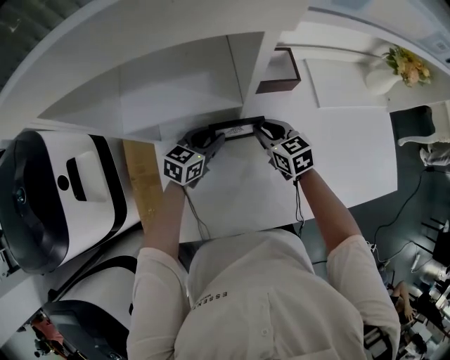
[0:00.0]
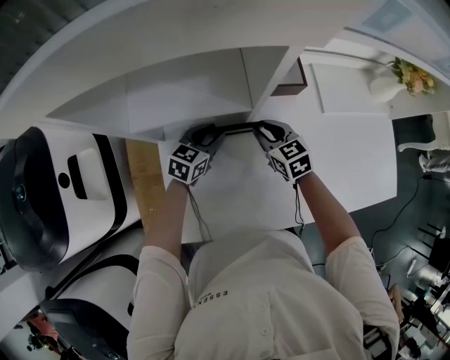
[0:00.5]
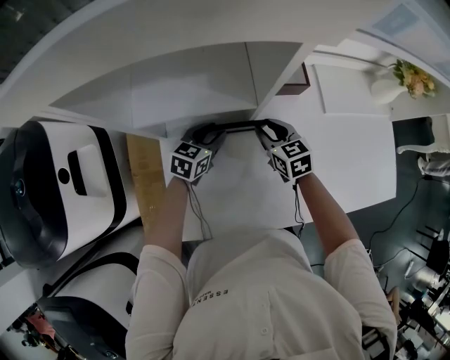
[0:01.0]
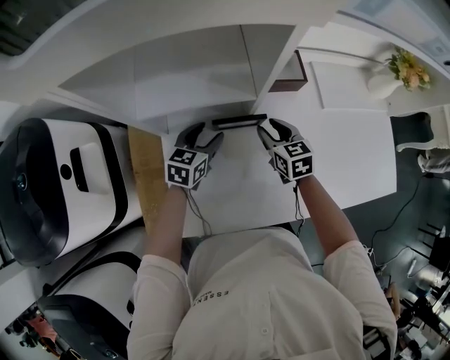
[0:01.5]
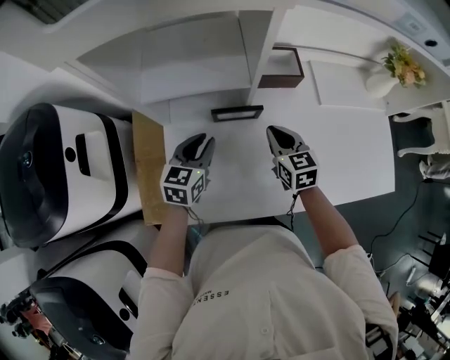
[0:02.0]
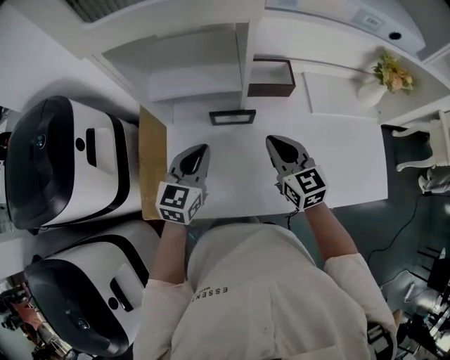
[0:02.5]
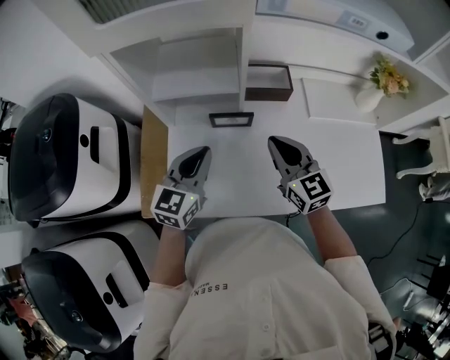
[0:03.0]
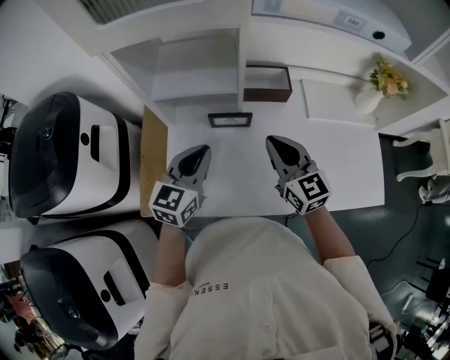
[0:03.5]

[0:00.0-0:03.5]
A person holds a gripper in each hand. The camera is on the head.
0:00.0 to 0:02.0: Both grippers travel together backward and upward, roughly 10 cm. The left gripper rotates about 20 degrees, and opens, then closes again. The right gripper opens, then closes once more.
0:02.0 to 0:03.5: Both grippers move upward and backward, about 15 cm. The left gripper closes, while the right gripper swivels about 20 degrees.

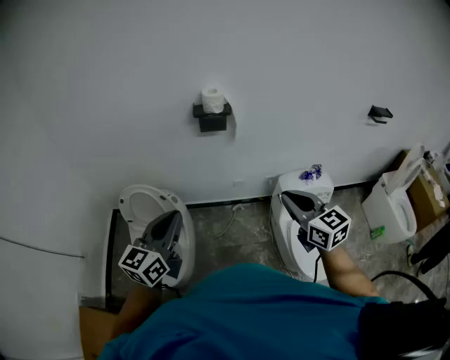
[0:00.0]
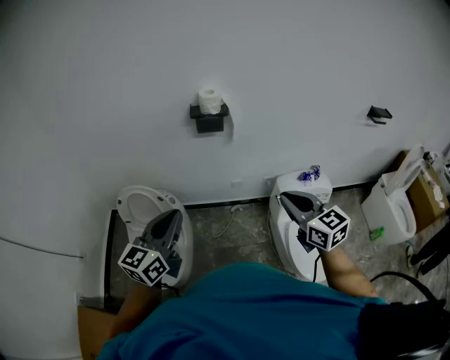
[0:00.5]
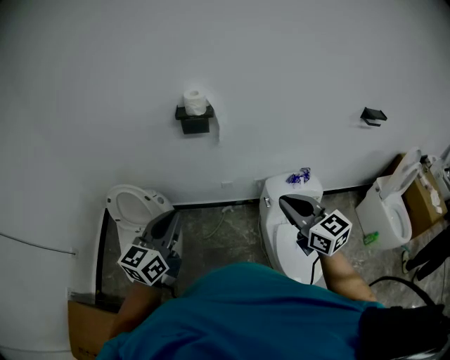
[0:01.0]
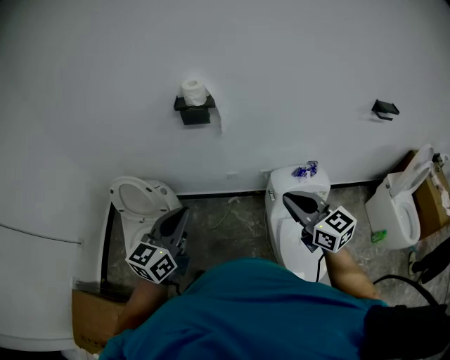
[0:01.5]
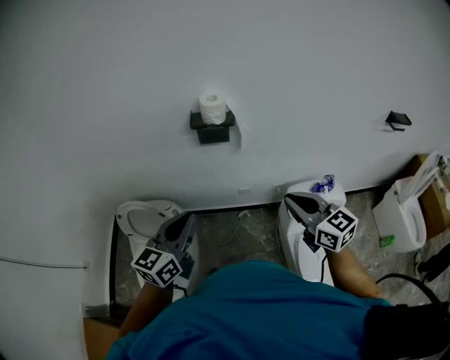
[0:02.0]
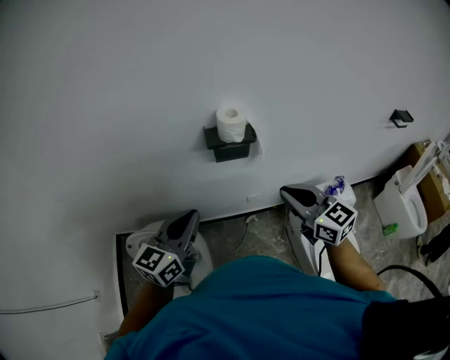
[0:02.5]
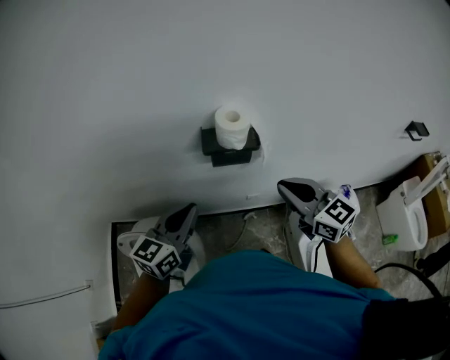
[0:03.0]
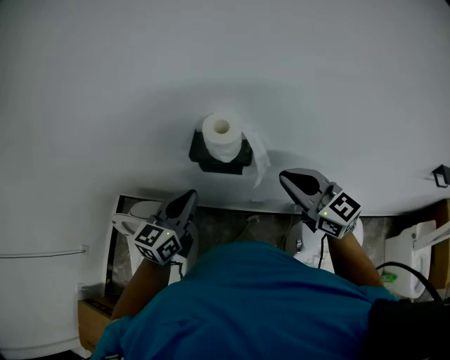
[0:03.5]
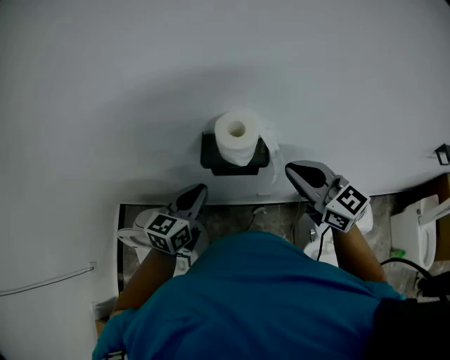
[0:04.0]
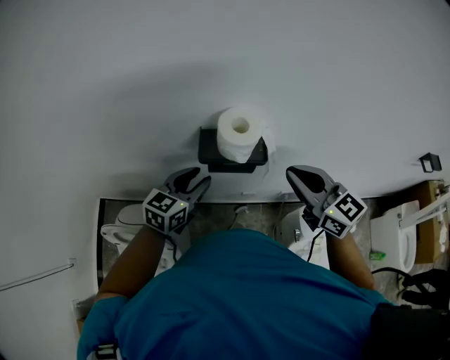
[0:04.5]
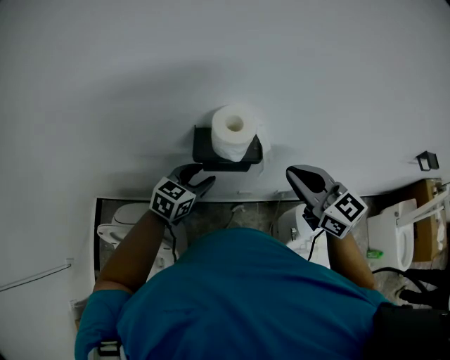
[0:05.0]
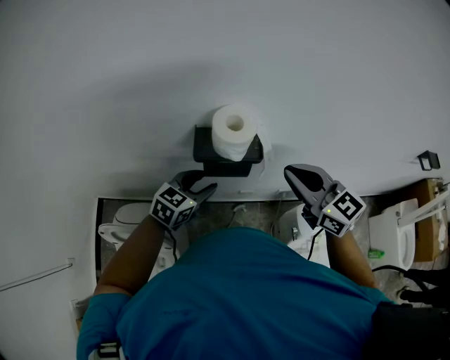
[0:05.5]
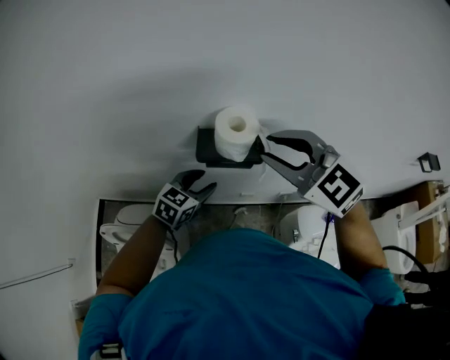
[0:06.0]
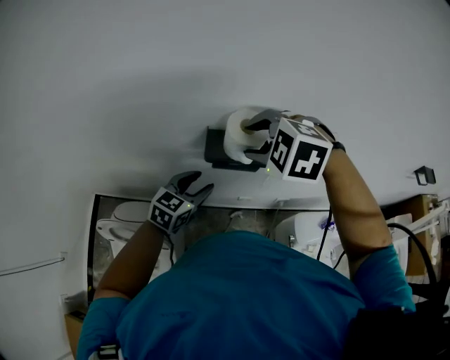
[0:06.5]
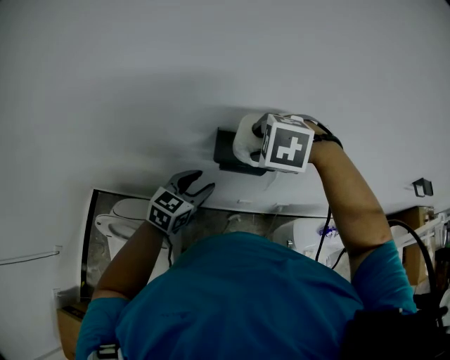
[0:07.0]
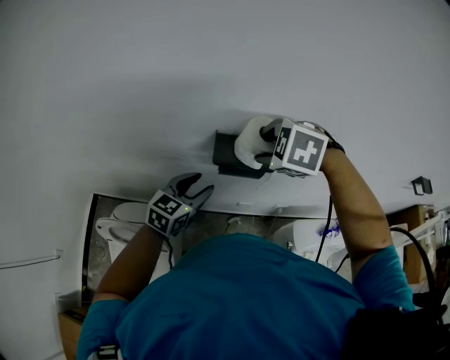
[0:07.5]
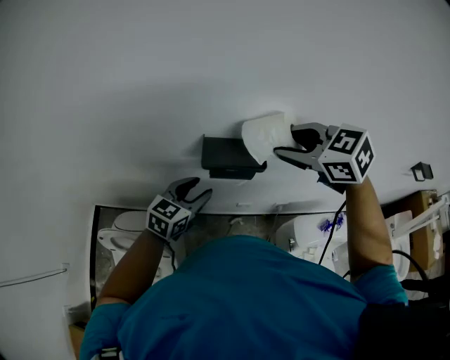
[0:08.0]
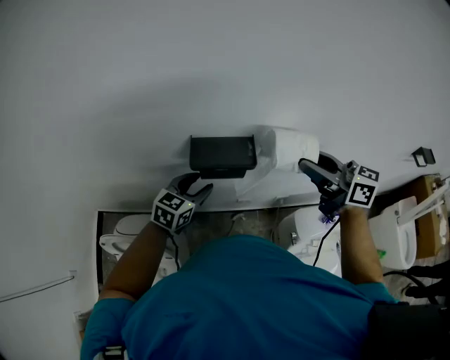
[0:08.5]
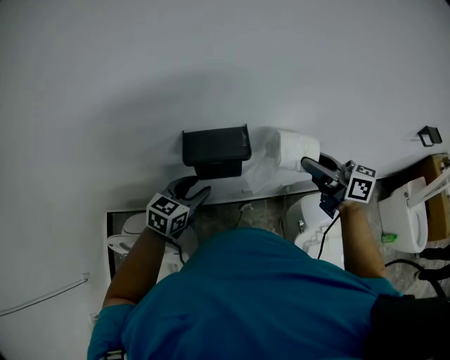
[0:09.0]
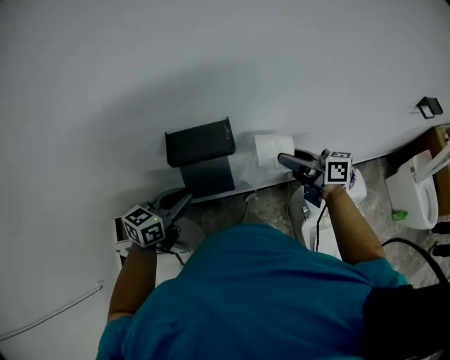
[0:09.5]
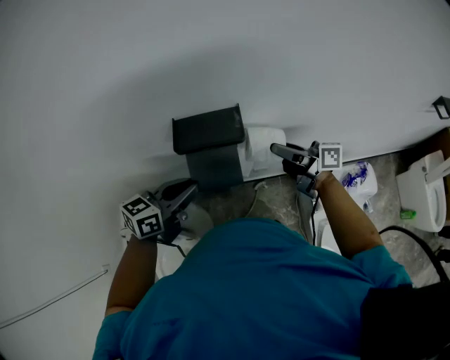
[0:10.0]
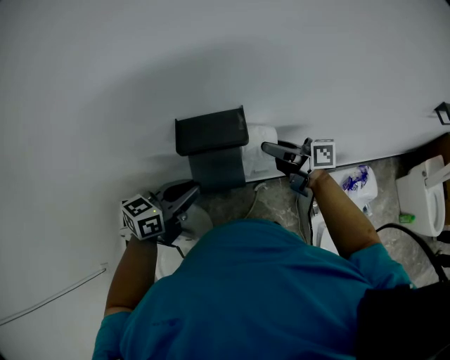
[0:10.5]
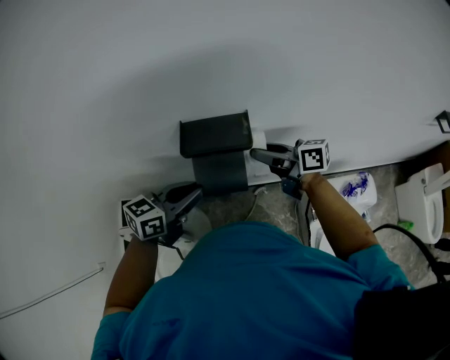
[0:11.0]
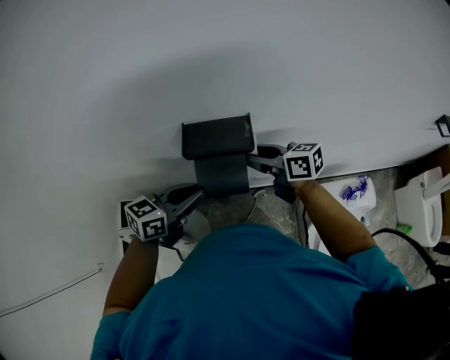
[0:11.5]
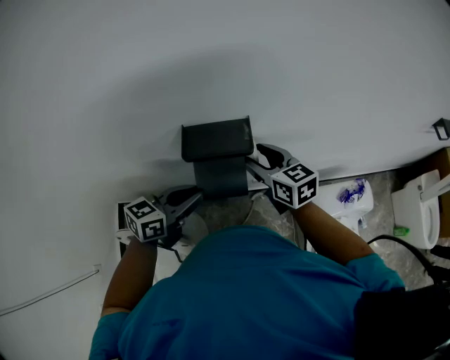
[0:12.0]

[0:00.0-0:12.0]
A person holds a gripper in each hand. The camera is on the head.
0:00.0 to 0:02.0: The right gripper is displaced forward by approximately 10 cm. Meanwhile the left gripper shifts about 15 cm forward and to the right.
0:02.0 to 0:04.0: The grippers both shift forward by about 30 cm.
0:04.0 to 0:06.0: The right gripper is displaced to the left and upward by roughly 10 cm, changes its angle by some 30 degrees, and opens its fingers, while the left gripper goes some 5 cm downward, swivels roughly 20 degrees, and opens up.
0:06.0 to 0:08.0: The right gripper moves about 5 cm to the left and comes back, and turns by roughly 20 degrees.
0:08.0 to 0:10.0: The right gripper moves downward and to the right, some 20 cm, and points its fingers some 50 degrees further upward. The left gripper moves approximately 5 cm, changes its angle by about 20 degrees, and closes up.
0:10.0 to 0:12.0: The right gripper travels to the left by about 10 cm, and rotates some 50 degrees.

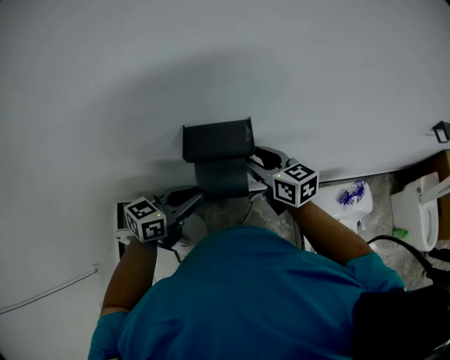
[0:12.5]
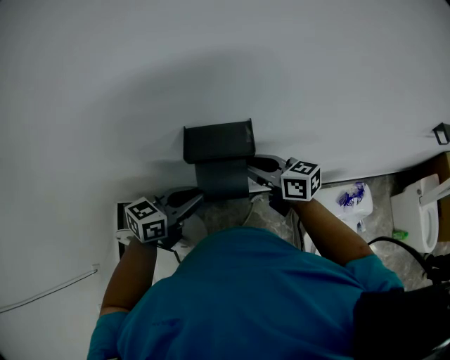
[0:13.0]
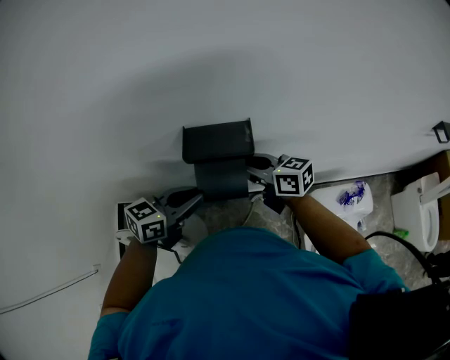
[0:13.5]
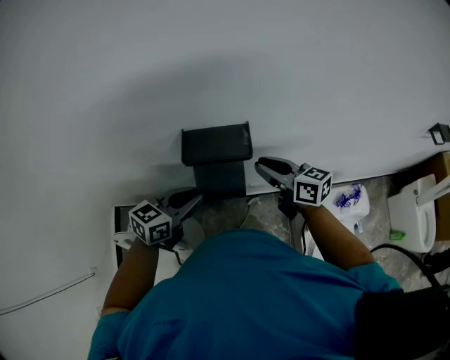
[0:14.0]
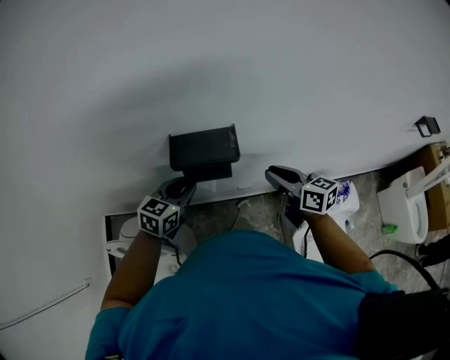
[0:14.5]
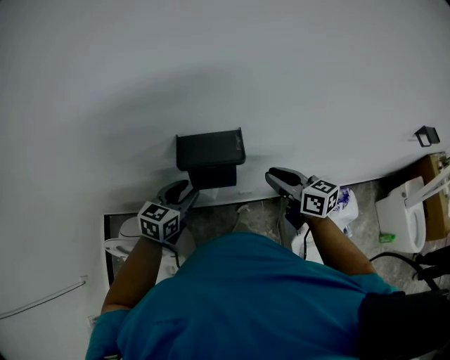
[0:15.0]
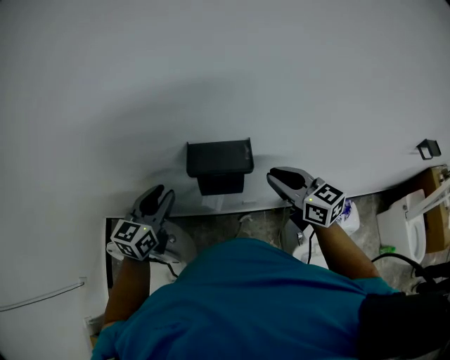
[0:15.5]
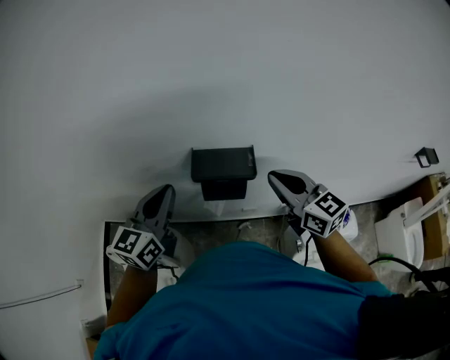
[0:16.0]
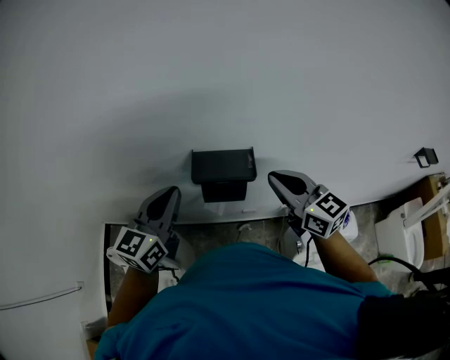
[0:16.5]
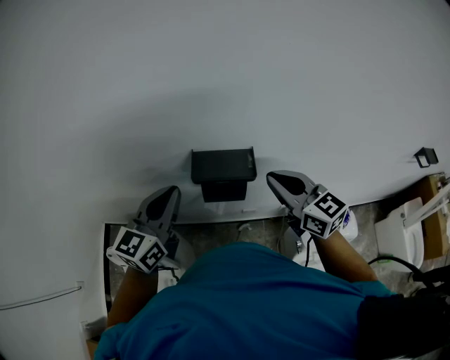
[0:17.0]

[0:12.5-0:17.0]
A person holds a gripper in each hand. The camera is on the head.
0:12.5 to 0:14.5: The left gripper heads forward and downward, covering about 10 cm, and swivels some 20 degrees, while the right gripper travels to the right by some 10 cm, and closes.
0:14.5 to 0:17.0: The left gripper moves upward, some 20 cm, swivels some 30 degrees, and opens and closes again; the right gripper heads upward and to the left, covering about 15 cm, and turns by about 30 degrees.

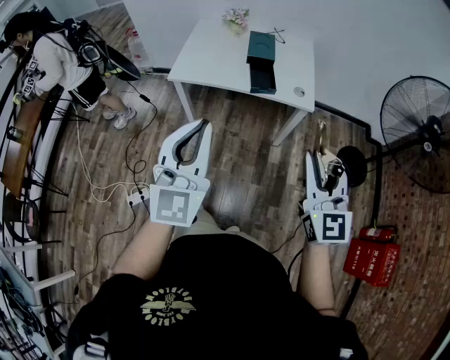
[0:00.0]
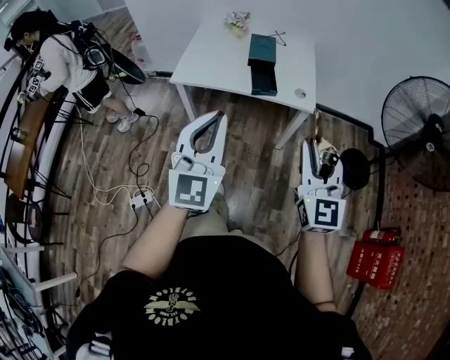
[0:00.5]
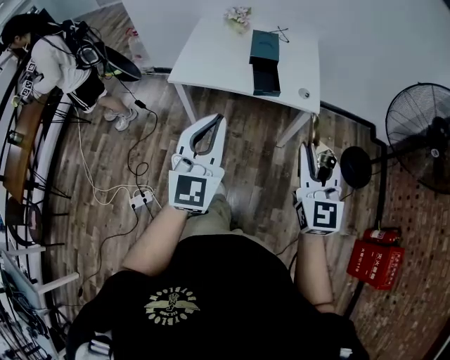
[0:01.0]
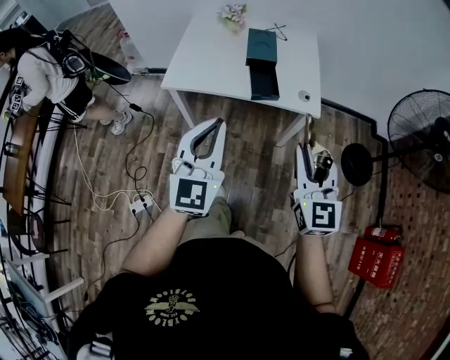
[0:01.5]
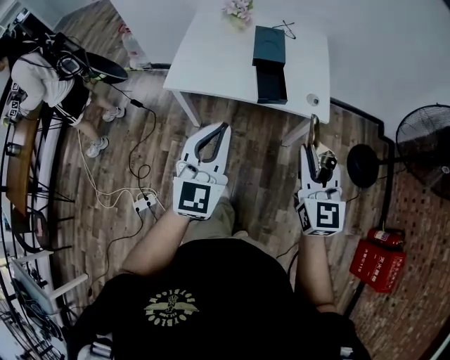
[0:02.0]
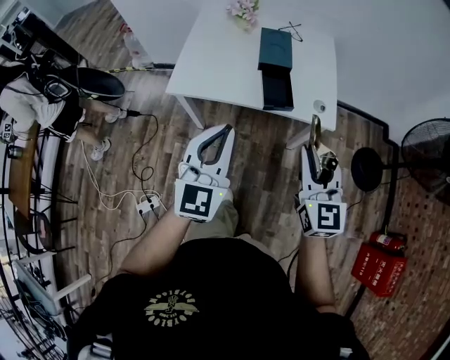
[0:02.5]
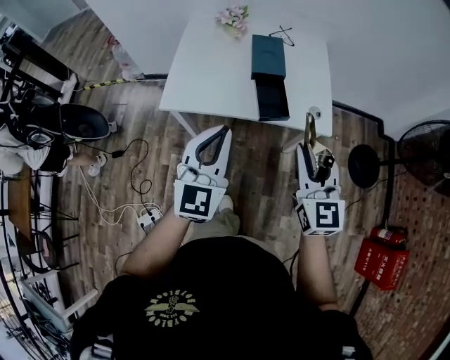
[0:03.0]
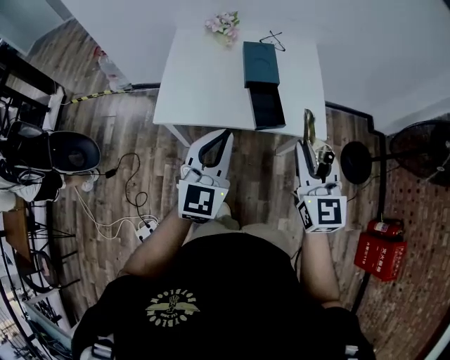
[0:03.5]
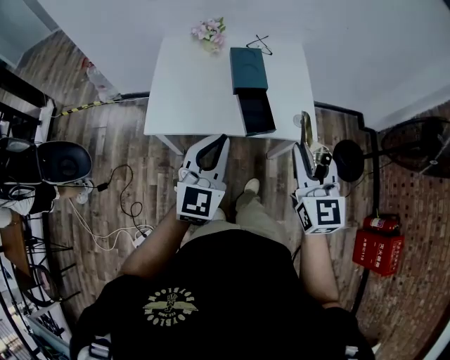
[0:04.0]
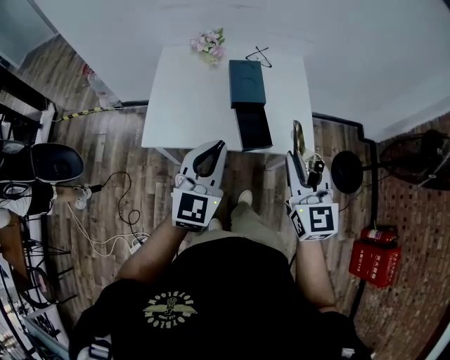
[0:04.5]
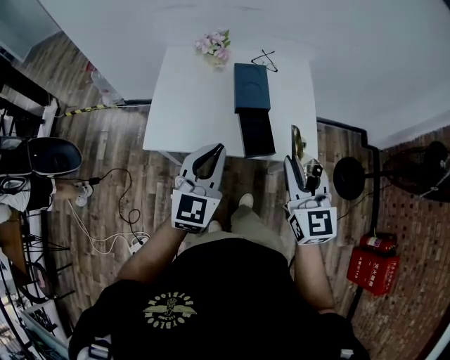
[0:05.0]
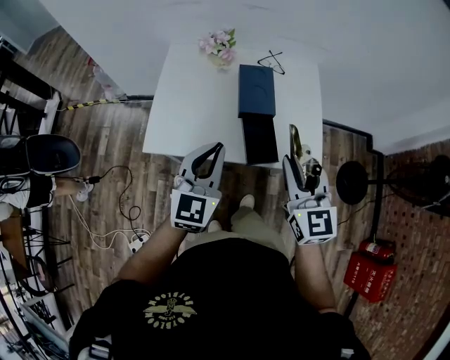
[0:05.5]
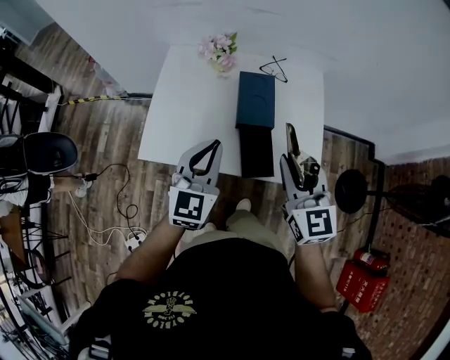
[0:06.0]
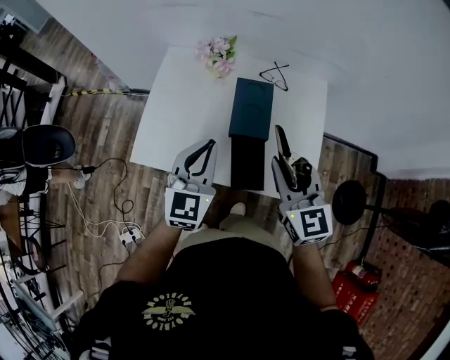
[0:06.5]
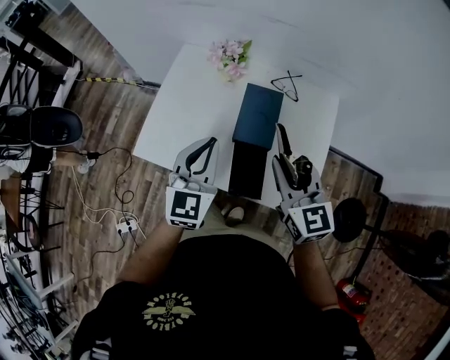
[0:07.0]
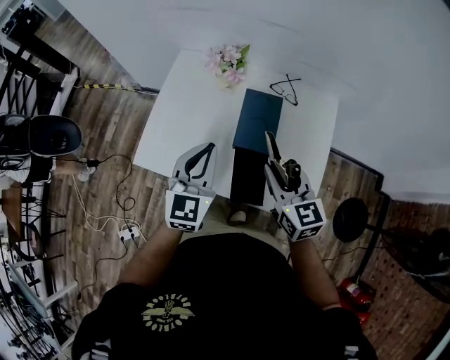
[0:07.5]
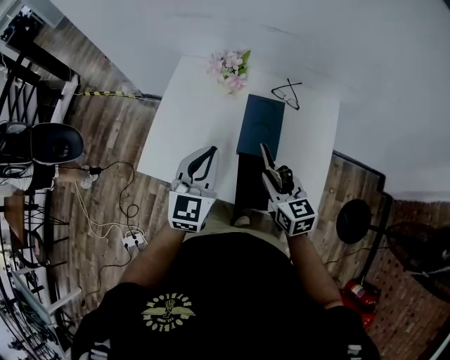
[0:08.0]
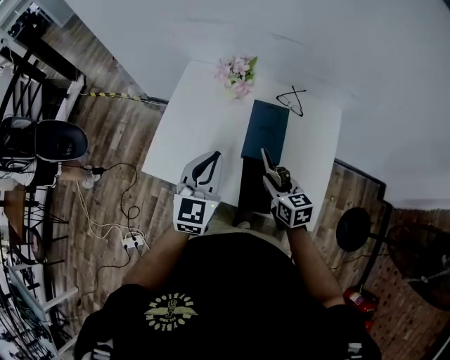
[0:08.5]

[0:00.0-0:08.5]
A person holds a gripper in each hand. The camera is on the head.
0:00.0 to 0:02.0: Both grippers travel together forward and downward, approximately 20 cm.
0:02.0 to 0:04.0: The right gripper moves forward and to the left, approximately 15 cm, while the left gripper shifts roughly 15 cm forward.
0:04.0 to 0:06.5: The grippers both shift forward by some 25 cm. The right gripper changes its angle by roughly 20 degrees.
0:06.5 to 0:08.5: The right gripper heads downward, covering approximately 20 cm, and changes its angle by about 30 degrees.
